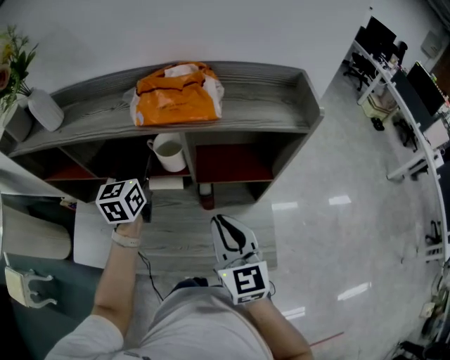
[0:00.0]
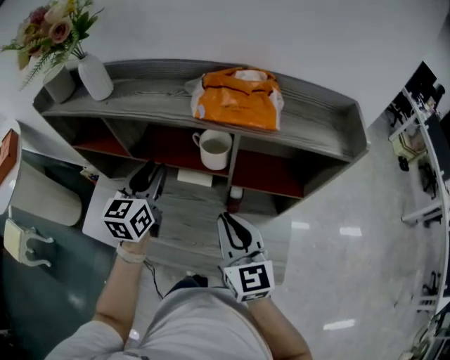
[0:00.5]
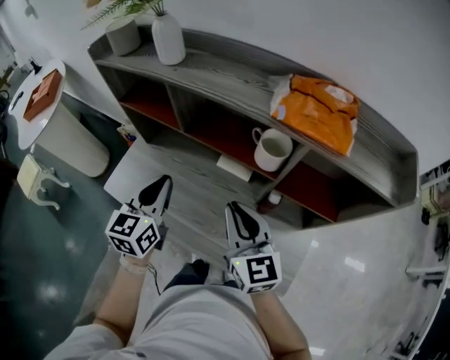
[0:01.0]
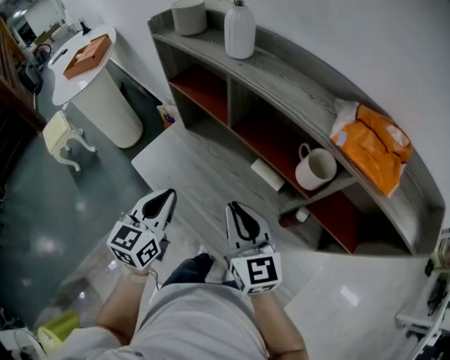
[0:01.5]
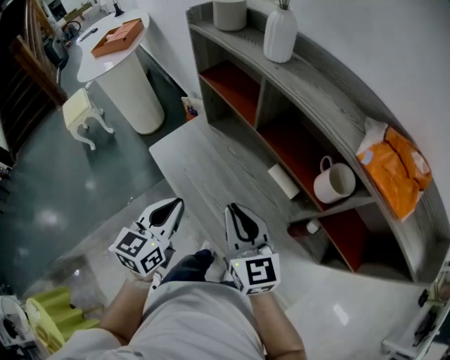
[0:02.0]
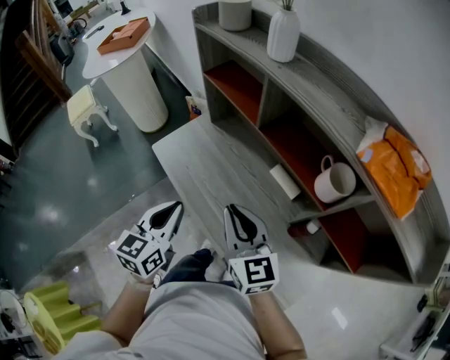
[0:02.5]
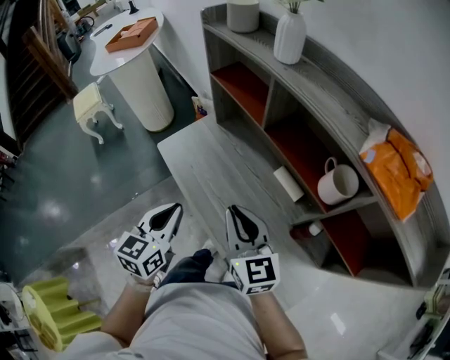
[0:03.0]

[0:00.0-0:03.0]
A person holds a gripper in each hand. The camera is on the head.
0.0 to 1.5 s: The right gripper ends up roughly 20 cm from where it was, and swivels some 40 degrees. Meanwhile the left gripper moves roughly 30 cm, changes its angle by roughly 30 degrees, and closes its fingers.
1.5 to 3.0 s: The left gripper shifts about 5 cm backward; the right gripper ends up some 5 cm from where it was.

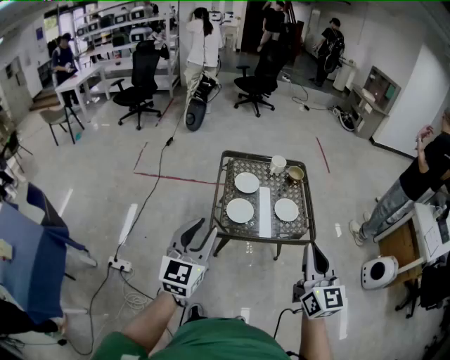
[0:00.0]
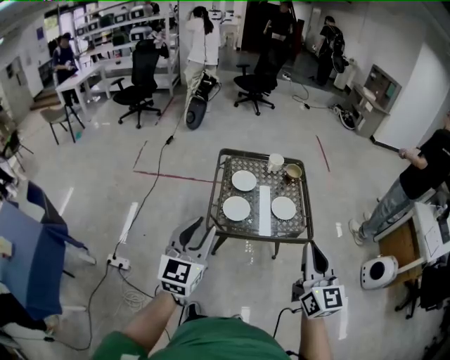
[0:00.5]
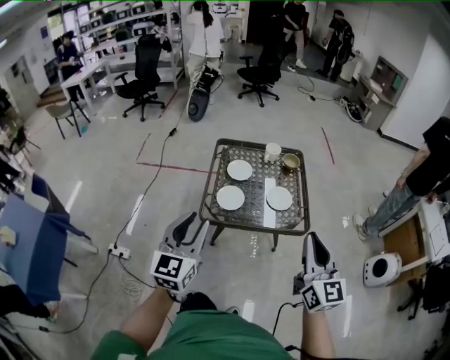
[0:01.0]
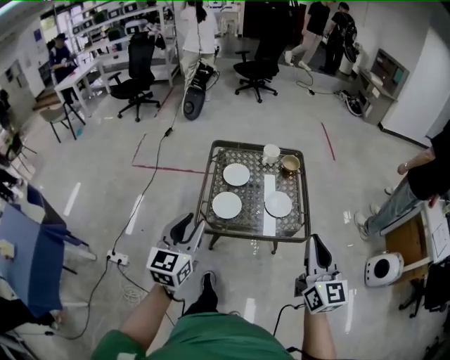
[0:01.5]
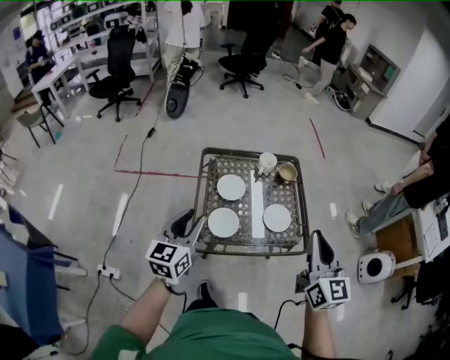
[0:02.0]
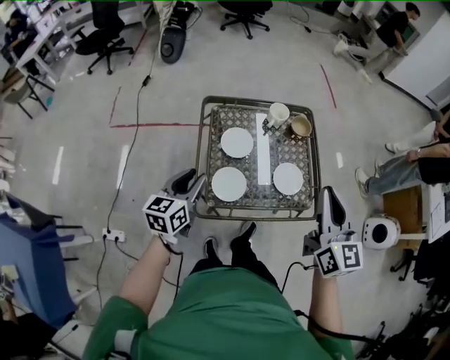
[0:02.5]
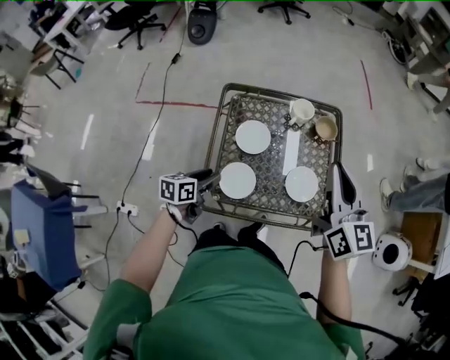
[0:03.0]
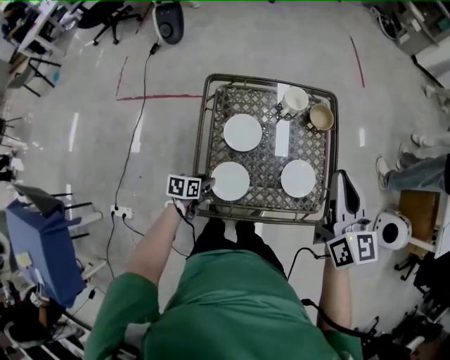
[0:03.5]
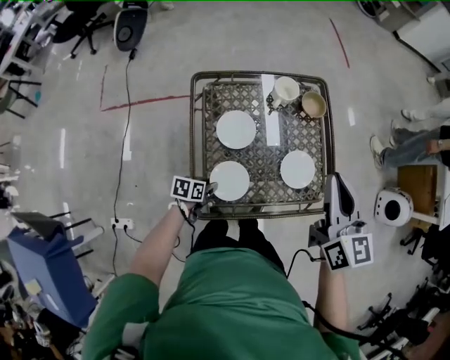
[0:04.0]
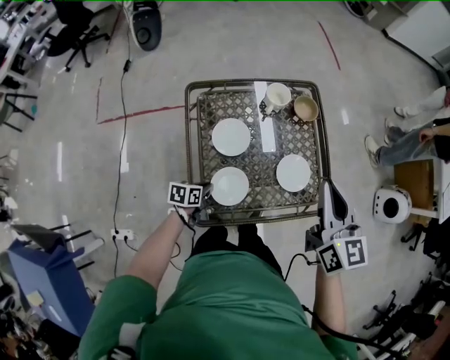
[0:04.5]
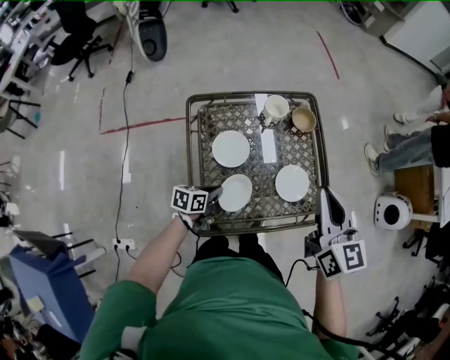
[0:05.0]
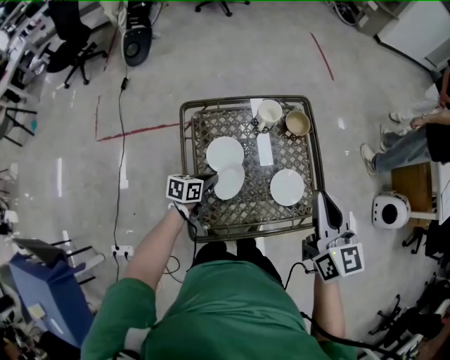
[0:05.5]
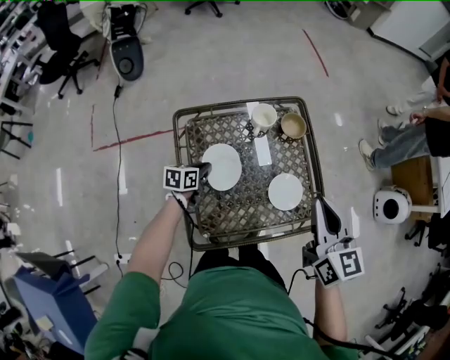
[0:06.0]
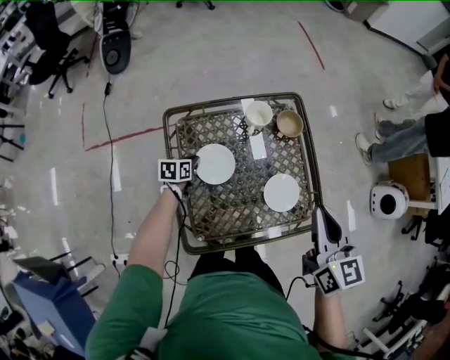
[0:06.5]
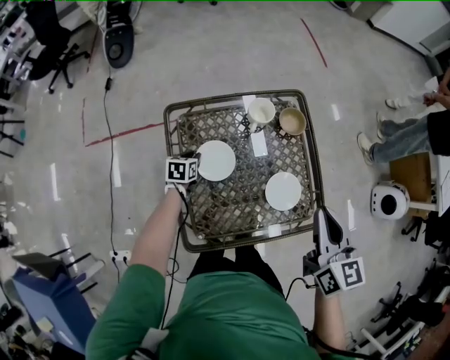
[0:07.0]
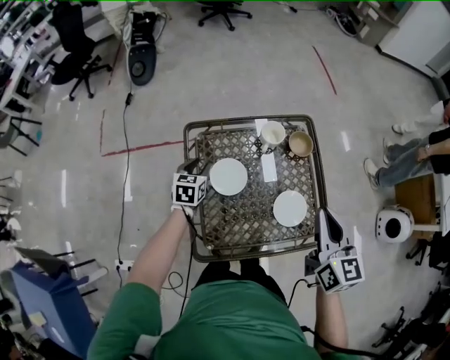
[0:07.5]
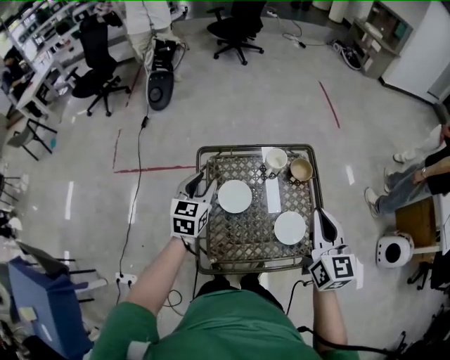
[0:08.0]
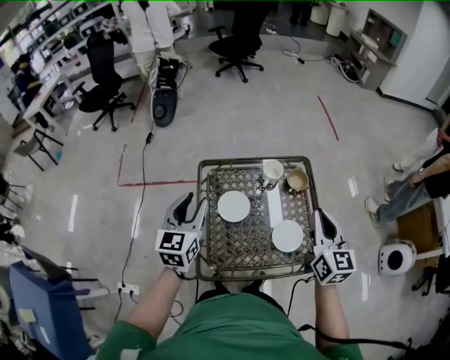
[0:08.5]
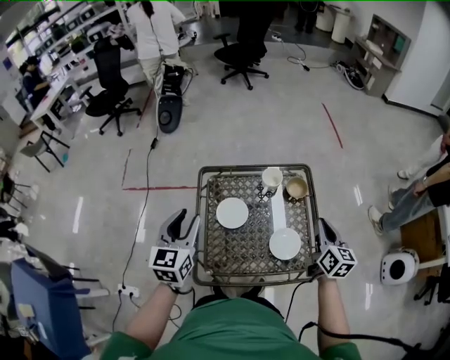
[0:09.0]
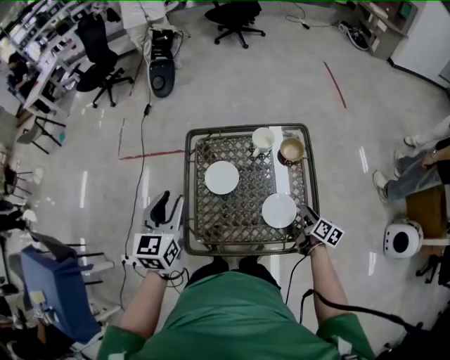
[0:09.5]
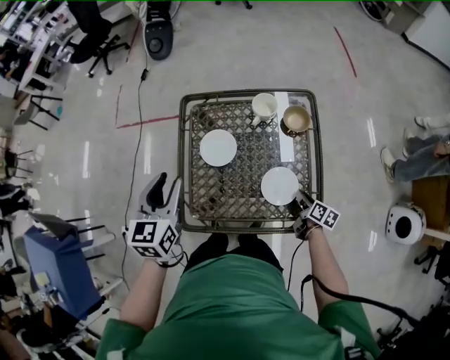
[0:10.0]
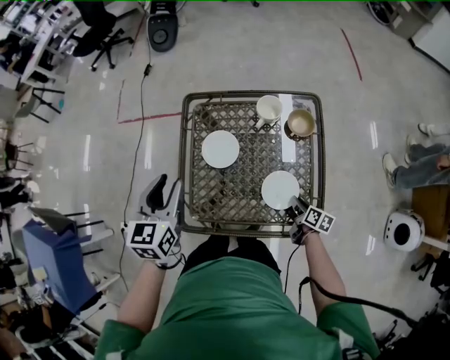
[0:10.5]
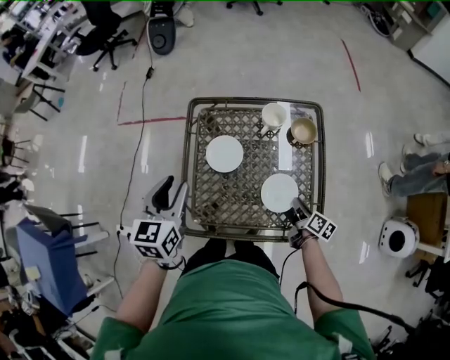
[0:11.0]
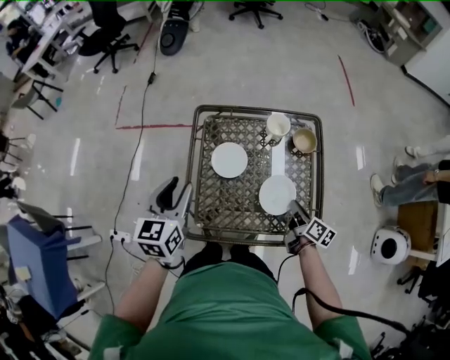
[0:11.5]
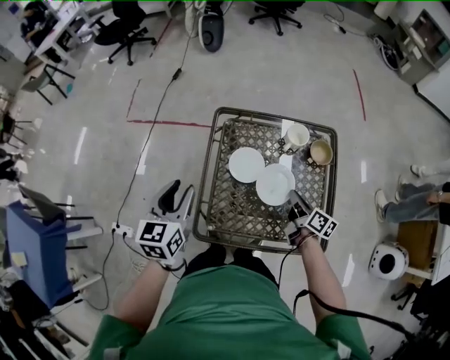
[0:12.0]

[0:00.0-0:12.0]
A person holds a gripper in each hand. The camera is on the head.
0.0 to 2.0 s: The right gripper is displaced forward by roughly 20 cm. Meanwhile the left gripper heads forward and downward, covering about 25 cm.
2.0 to 4.0 s: The left gripper travels downward by approximately 40 cm, and angles its fingers downward, by approximately 40 degrees. The right gripper heads forward and downward, covering about 25 cm.
4.0 to 6.0 s: The left gripper moves forward and upward, some 20 cm, and closes its fingers.
6.0 to 8.0 s: The left gripper moves upward, some 25 cm, swivels approximately 40 degrees, and opens its fingers.
8.0 to 10.0 s: The right gripper goes approximately 40 cm downward, tilts its fingers about 30 degrees downward, and opens up, while the left gripper is displaced backward by some 10 cm.
10.0 to 12.0 s: The right gripper goes some 25 cm to the left, upward and forward, changes its angle by roughly 20 degrees, and closes up; the left gripper shifts about 10 cm to the left.

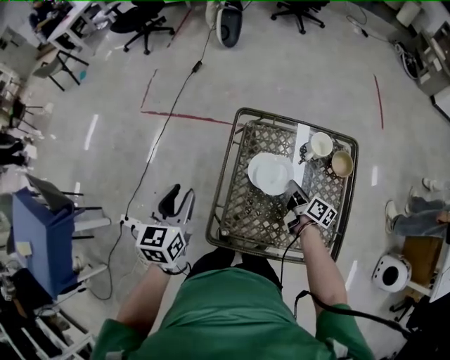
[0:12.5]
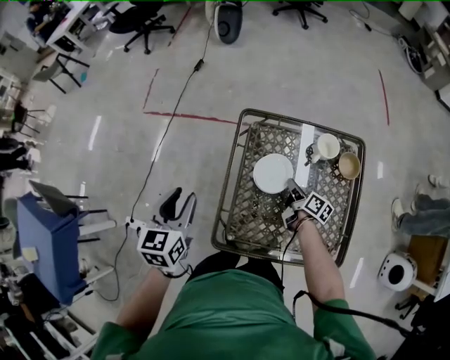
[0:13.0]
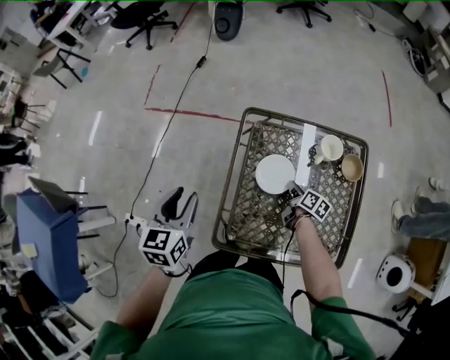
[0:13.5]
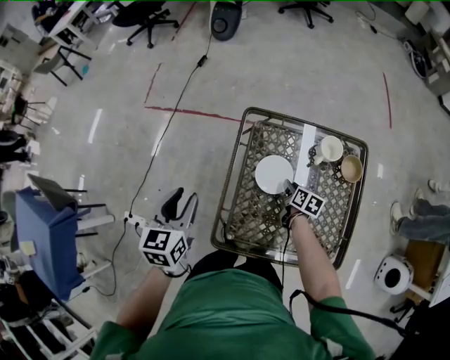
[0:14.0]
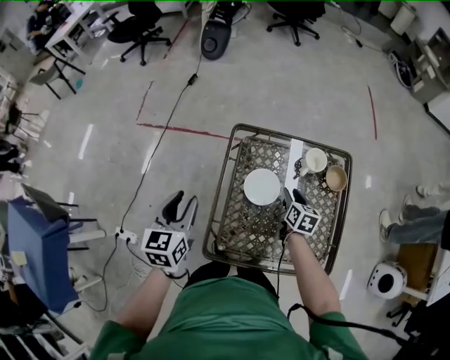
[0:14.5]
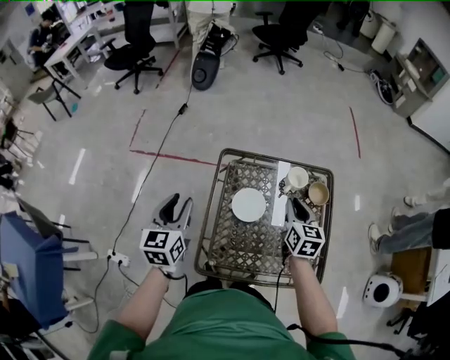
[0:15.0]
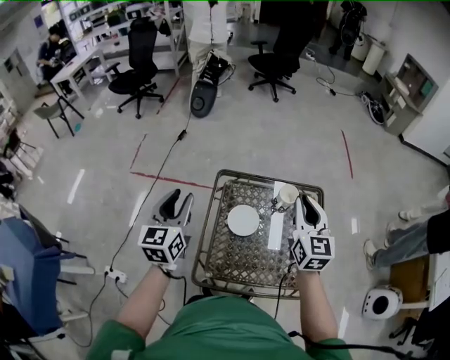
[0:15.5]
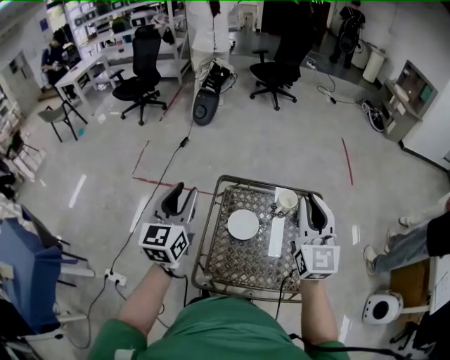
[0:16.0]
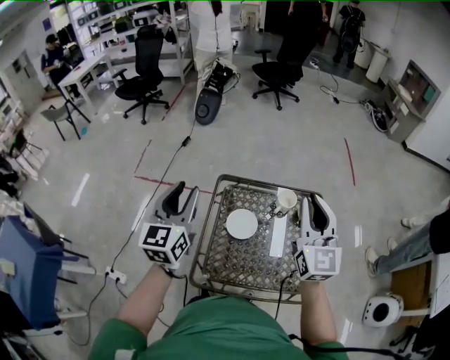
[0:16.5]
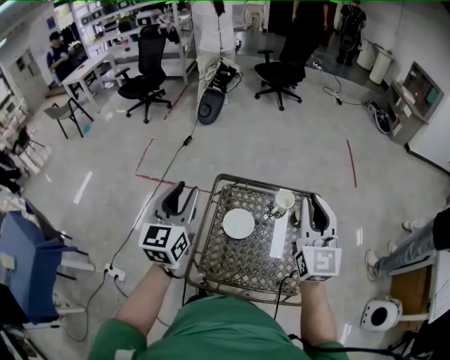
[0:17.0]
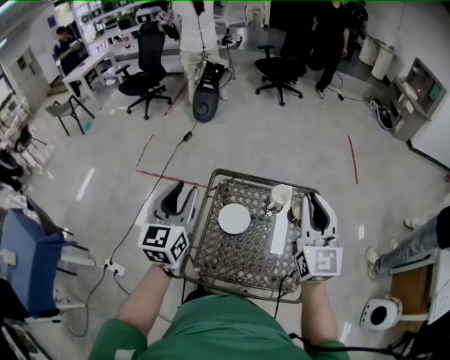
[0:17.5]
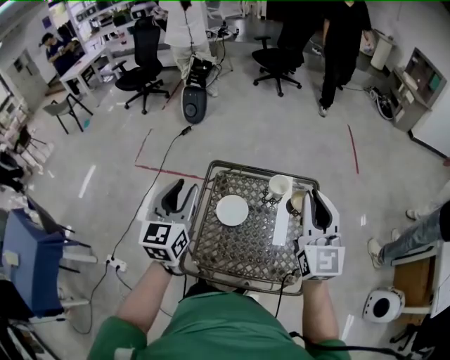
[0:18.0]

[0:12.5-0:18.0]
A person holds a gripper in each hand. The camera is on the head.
12.5 to 14.5 s: The right gripper travels downward and back again, some 10 cm each way, swivels about 40 degrees, and opens.
14.5 to 16.0 s: The right gripper goes some 40 cm upward, angles its fingers upward, by approximately 40 degrees, and closes its fingers. Meanwhile the left gripper goes approximately 20 cm upward, and swivels approximately 20 degrees.
16.0 to 18.0 s: Both grippers travel together to the right, approximately 10 cm.

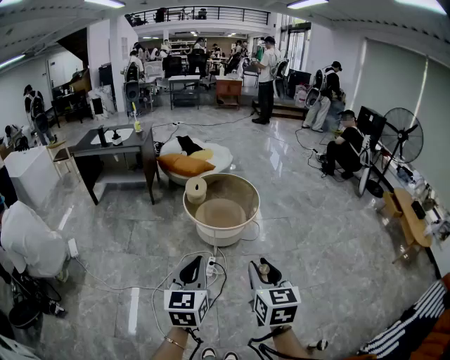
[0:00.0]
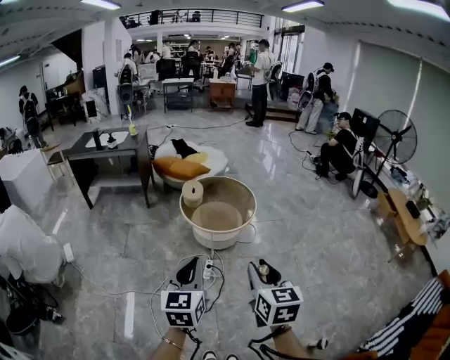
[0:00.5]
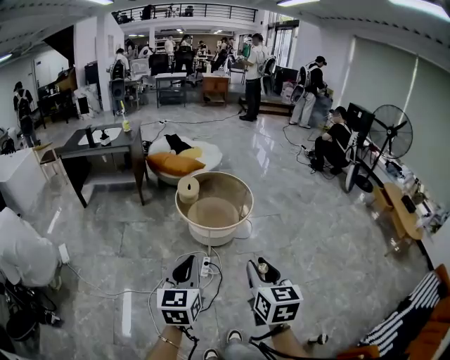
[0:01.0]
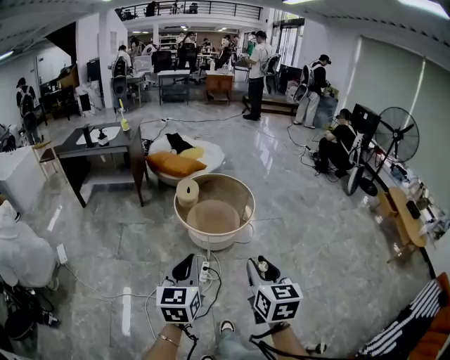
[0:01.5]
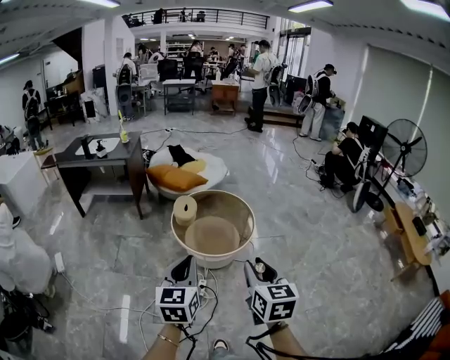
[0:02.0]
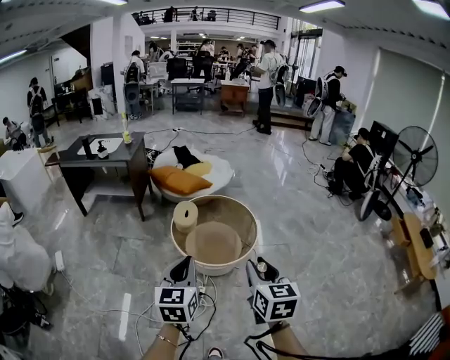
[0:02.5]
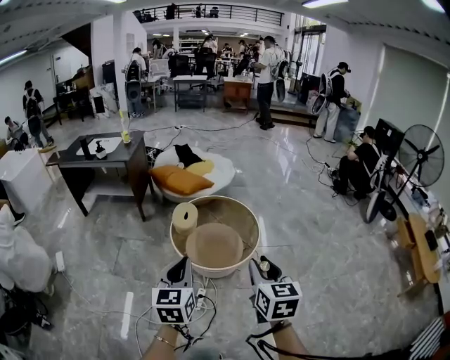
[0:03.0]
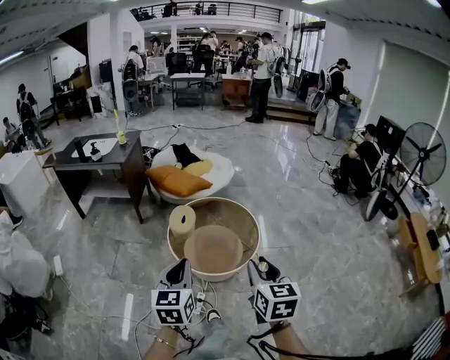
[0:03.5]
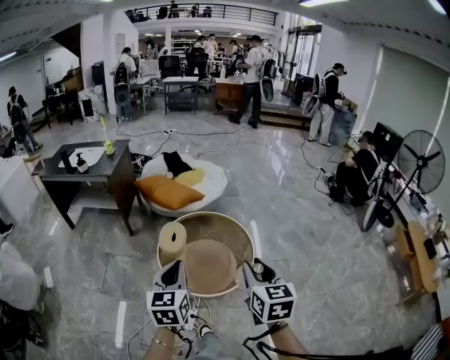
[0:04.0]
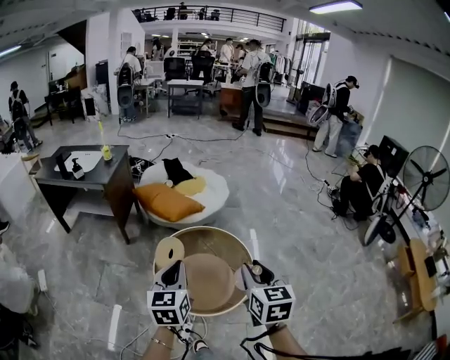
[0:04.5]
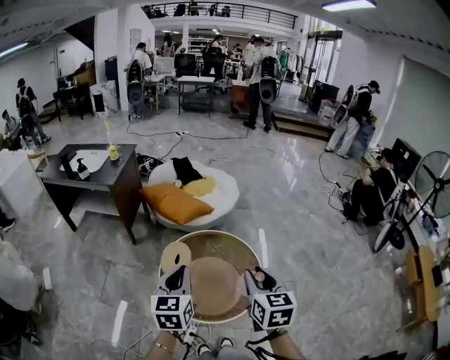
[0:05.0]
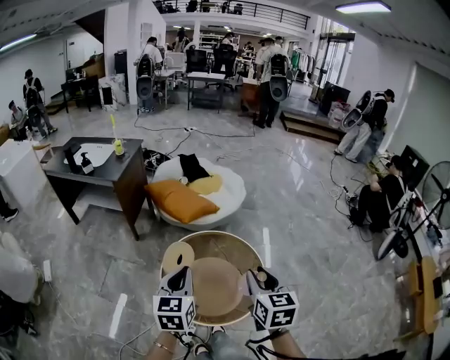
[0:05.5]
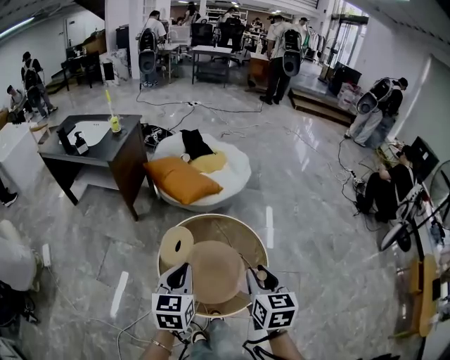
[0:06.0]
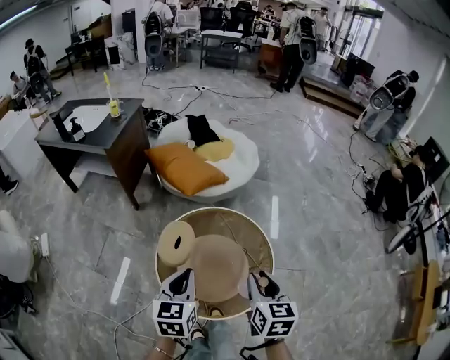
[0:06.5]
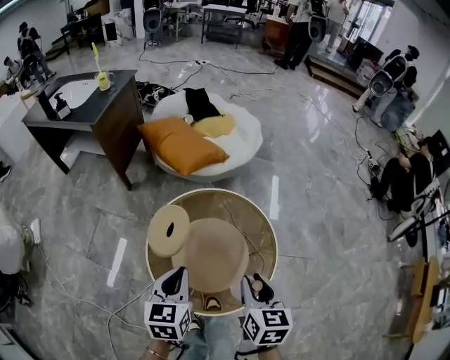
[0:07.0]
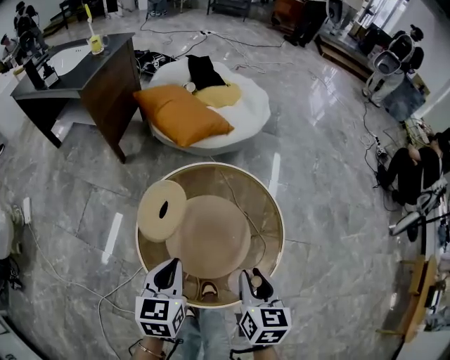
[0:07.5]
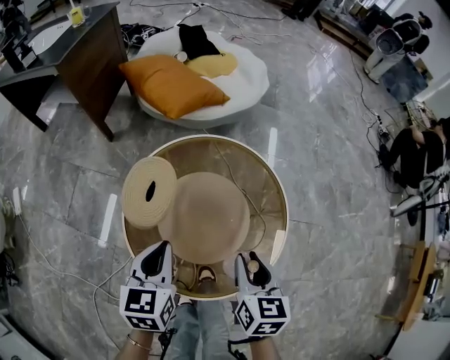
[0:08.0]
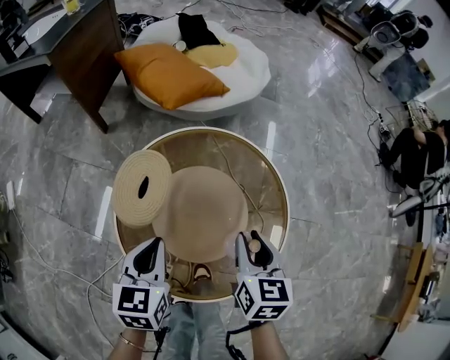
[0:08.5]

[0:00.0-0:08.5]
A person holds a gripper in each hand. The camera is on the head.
0.0 to 2.0 s: The grippers both shift forward by about 20 cm.
2.0 to 4.0 s: Both grippers move forward, some 30 cm.
4.0 to 6.5 s: The grippers both shift forward and downward by approximately 30 cm.
6.5 to 8.5 s: The two grippers go roughly 25 cm downward.
